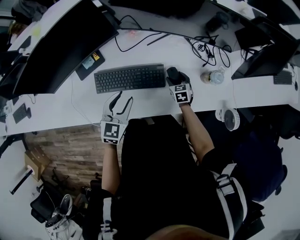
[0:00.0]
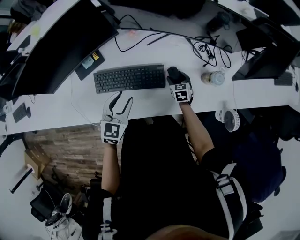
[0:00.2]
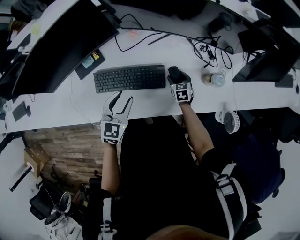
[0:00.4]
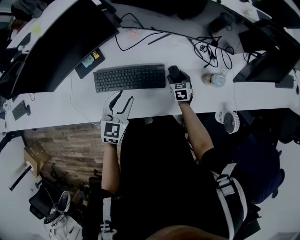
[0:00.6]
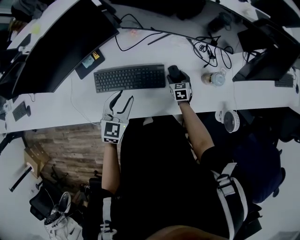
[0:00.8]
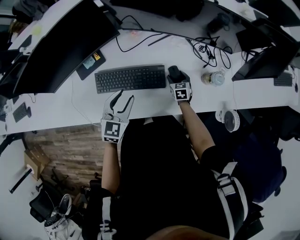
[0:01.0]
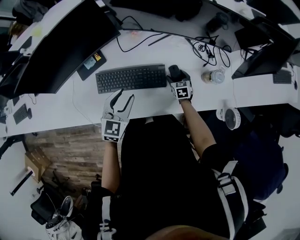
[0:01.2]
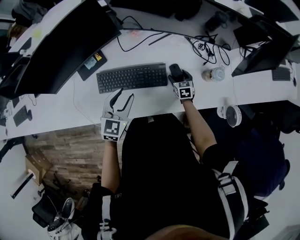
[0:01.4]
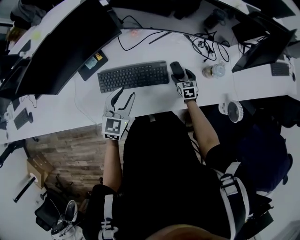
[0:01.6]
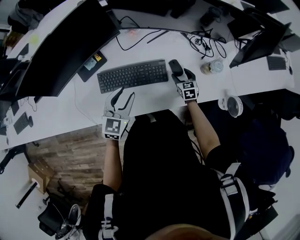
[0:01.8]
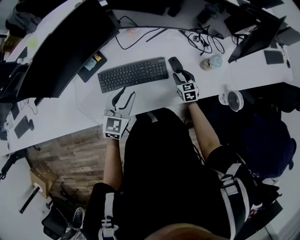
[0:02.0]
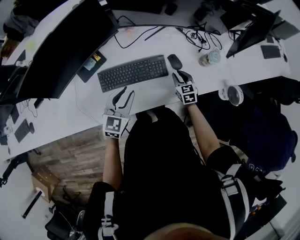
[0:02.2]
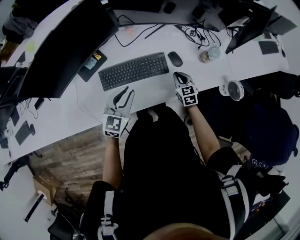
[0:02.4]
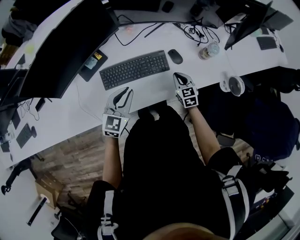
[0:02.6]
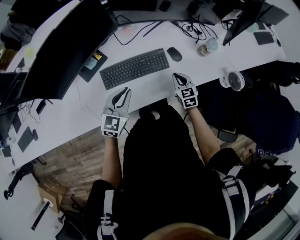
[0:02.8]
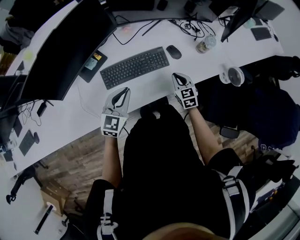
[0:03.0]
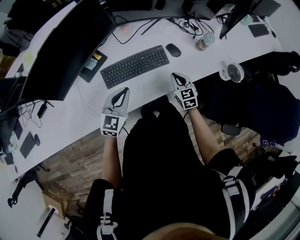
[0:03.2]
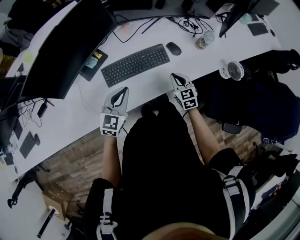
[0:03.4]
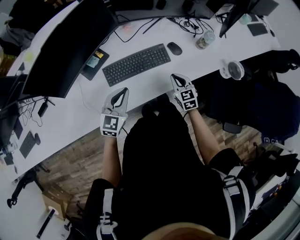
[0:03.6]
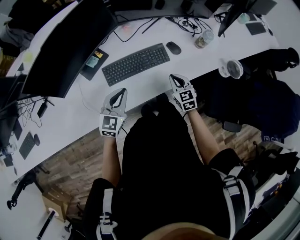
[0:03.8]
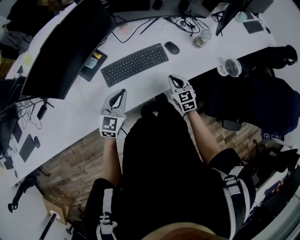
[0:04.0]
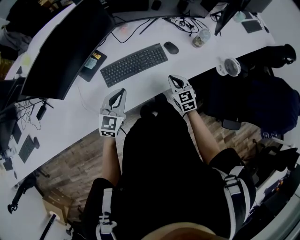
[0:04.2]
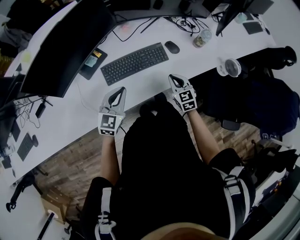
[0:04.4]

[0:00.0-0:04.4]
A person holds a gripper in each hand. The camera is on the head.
0:00.0 to 0:01.4: The grippers move only a little.
0:01.4 to 0:03.0: The left gripper travels backward and to the left by approximately 10 cm, and closes; the right gripper moves backward and upward, approximately 20 cm, and closes up.
0:03.0 to 0:04.4: The right gripper shifts approximately 5 cm backward; the left gripper shifts by about 5 cm.

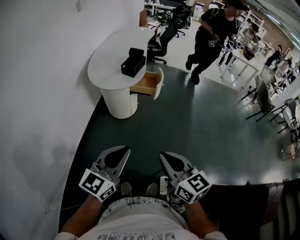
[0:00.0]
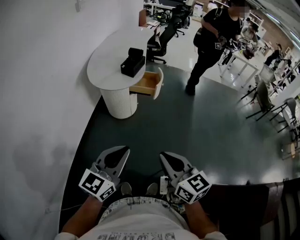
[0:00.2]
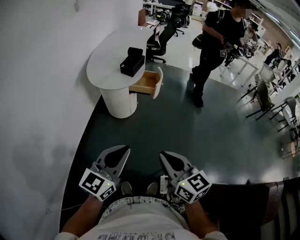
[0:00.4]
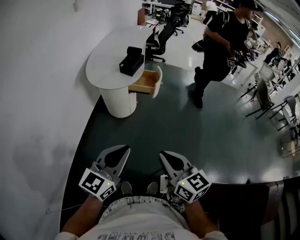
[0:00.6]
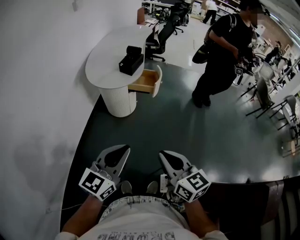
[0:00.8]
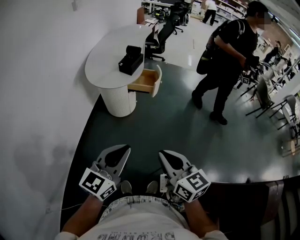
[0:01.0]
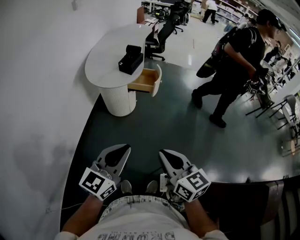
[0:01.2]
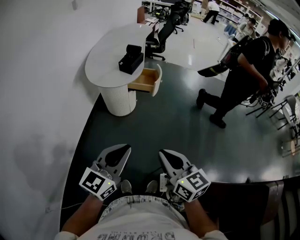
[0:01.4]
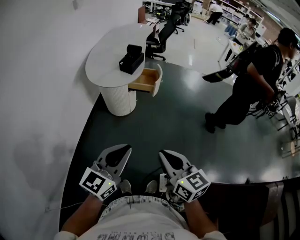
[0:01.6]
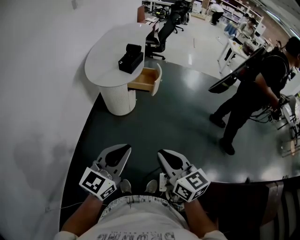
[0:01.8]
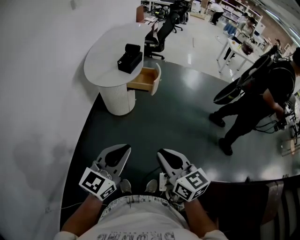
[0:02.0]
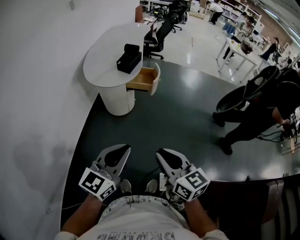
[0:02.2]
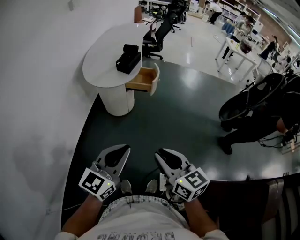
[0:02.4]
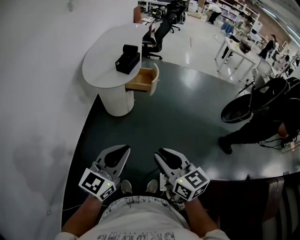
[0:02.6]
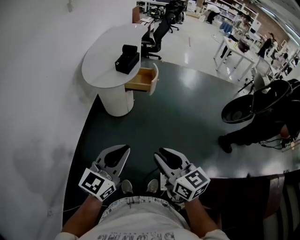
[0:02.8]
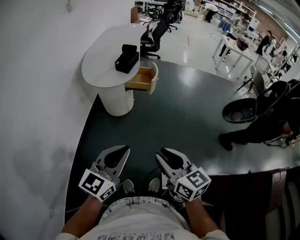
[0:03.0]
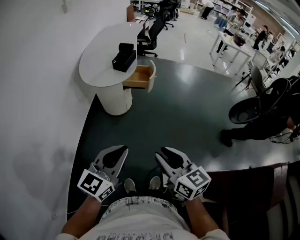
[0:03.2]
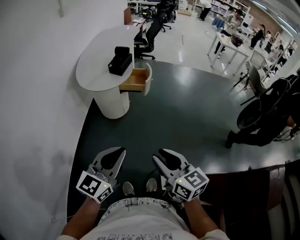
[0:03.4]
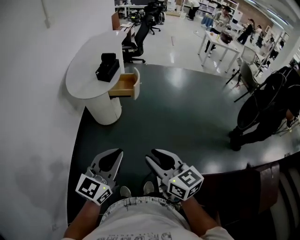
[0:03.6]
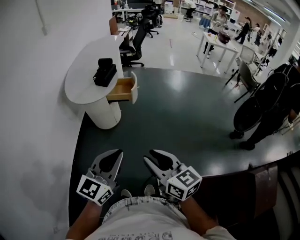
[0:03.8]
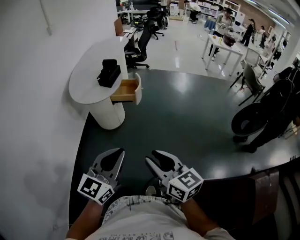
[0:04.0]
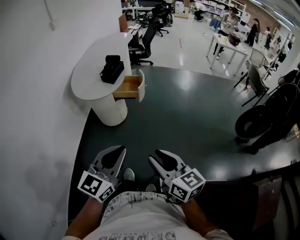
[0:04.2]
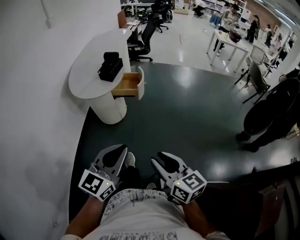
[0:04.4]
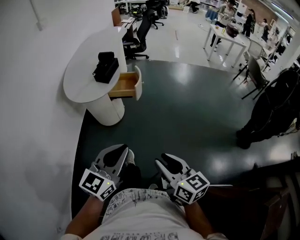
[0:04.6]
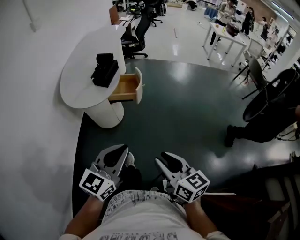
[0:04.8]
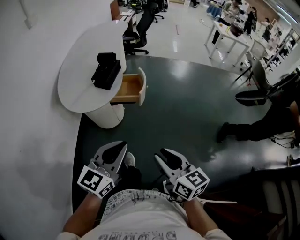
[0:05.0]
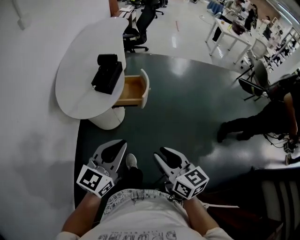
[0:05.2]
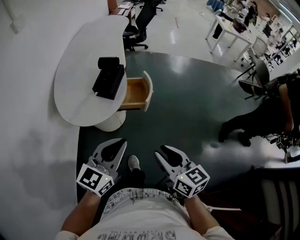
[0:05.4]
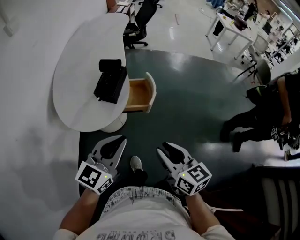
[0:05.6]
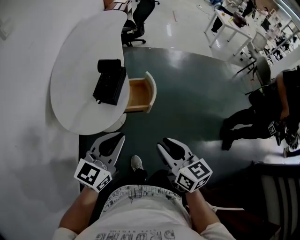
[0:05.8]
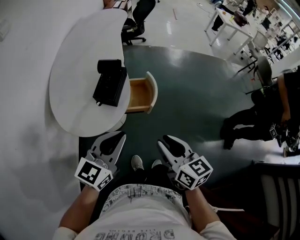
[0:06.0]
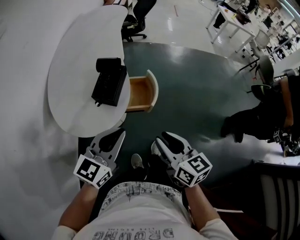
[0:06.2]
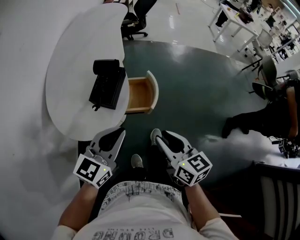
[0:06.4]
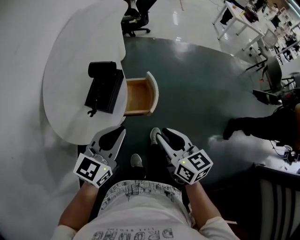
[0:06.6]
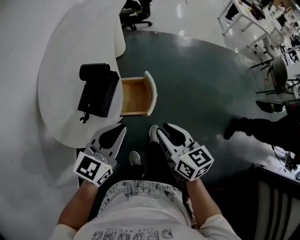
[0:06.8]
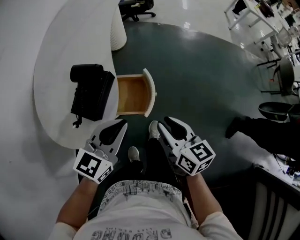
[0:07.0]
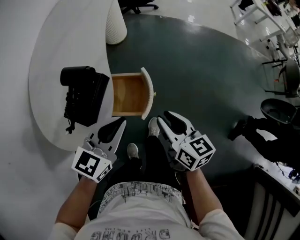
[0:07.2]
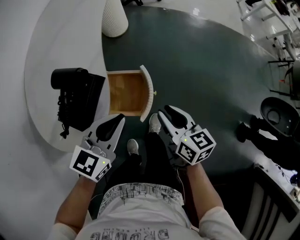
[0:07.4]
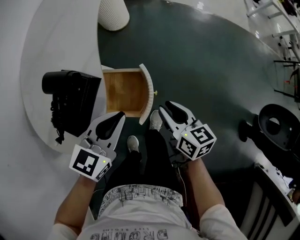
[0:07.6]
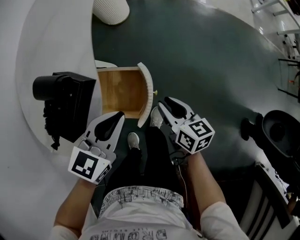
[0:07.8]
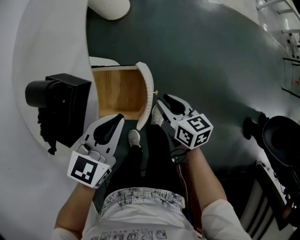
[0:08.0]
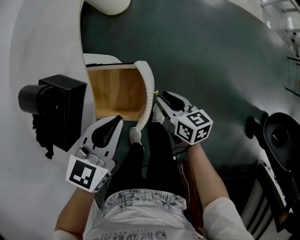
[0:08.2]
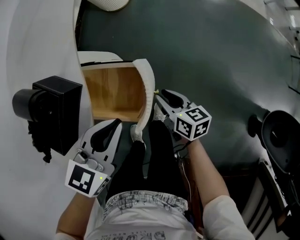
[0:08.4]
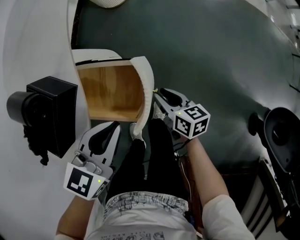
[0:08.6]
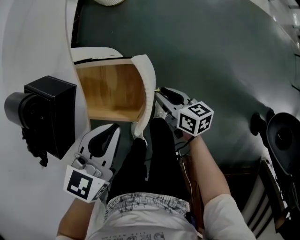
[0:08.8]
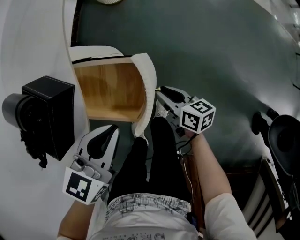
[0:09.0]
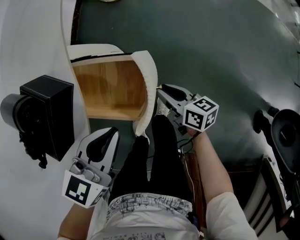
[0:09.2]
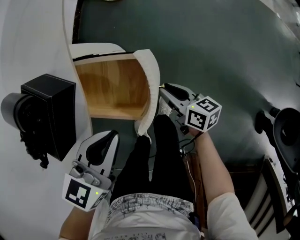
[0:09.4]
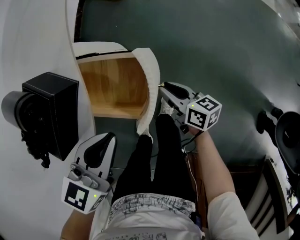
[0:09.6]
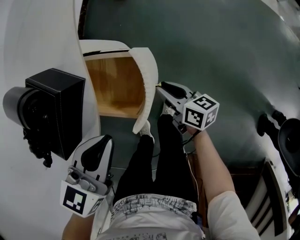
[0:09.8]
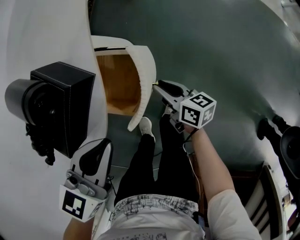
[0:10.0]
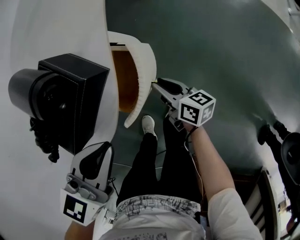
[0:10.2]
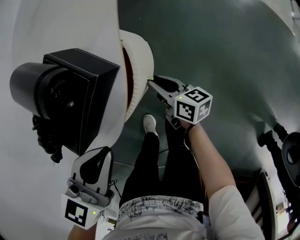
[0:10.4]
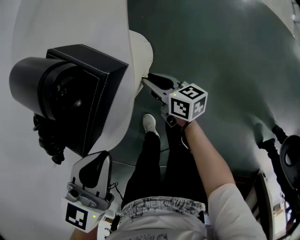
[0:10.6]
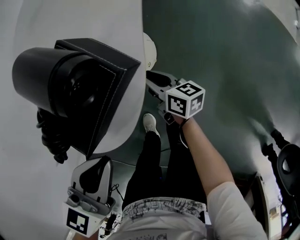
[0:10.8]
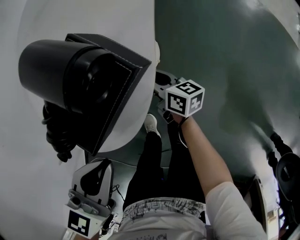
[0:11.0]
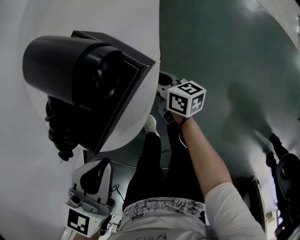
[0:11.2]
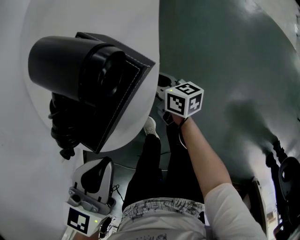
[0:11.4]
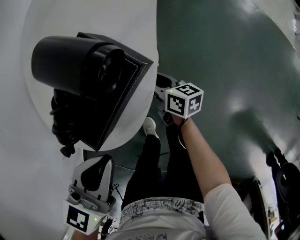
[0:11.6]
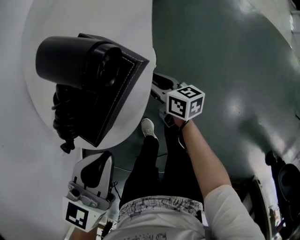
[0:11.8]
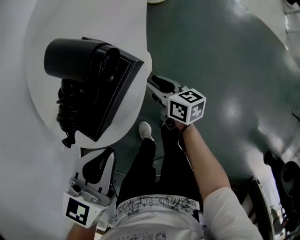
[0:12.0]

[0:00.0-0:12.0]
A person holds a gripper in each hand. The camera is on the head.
0:00.0 to 0:01.6: The grippers move only a little.
0:01.6 to 0:03.0: The right gripper opens up.
0:03.0 to 0:04.4: The right gripper is displaced to the right by roughly 10 cm. The left gripper moves to the right and forward, roughly 10 cm.
0:04.4 to 0:06.0: The pair of grippers is taken forward, about 40 cm.
0:06.0 to 0:07.6: The left gripper moves forward, downward and to the right, approximately 30 cm. Meanwhile the right gripper travels forward and downward by roughly 35 cm.
0:07.6 to 0:09.0: The right gripper shifts some 20 cm downward, and rotates about 20 degrees, while the left gripper moves downward, roughly 10 cm.
0:09.0 to 0:10.4: The right gripper goes approximately 15 cm to the left. The left gripper heads to the left and upward, covering approximately 15 cm.
0:10.4 to 0:12.0: The right gripper moves upward, roughly 5 cm; the left gripper shifts by roughly 5 cm.

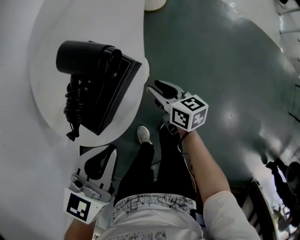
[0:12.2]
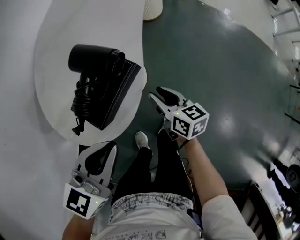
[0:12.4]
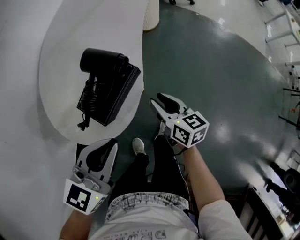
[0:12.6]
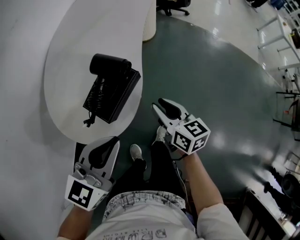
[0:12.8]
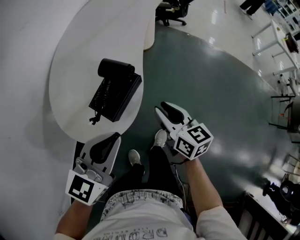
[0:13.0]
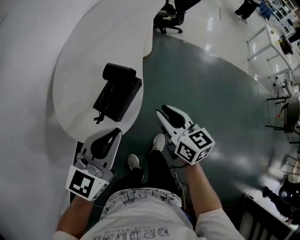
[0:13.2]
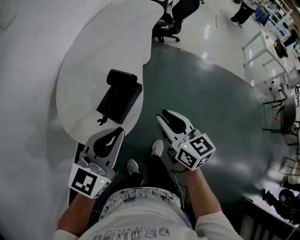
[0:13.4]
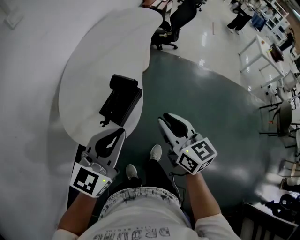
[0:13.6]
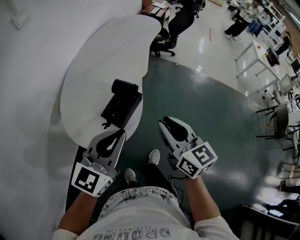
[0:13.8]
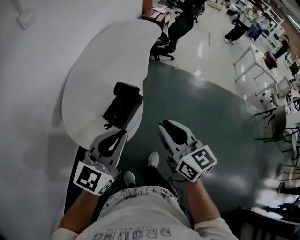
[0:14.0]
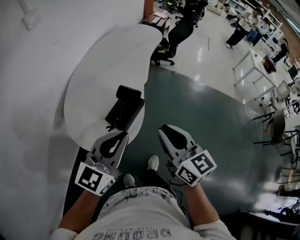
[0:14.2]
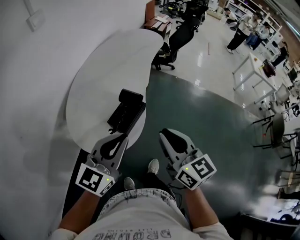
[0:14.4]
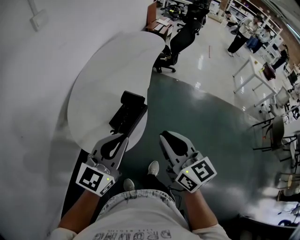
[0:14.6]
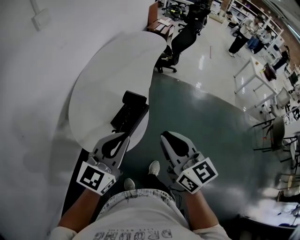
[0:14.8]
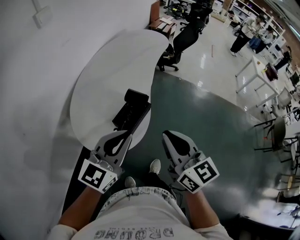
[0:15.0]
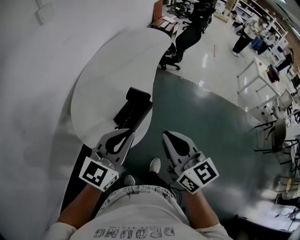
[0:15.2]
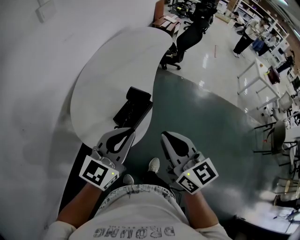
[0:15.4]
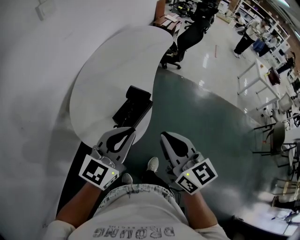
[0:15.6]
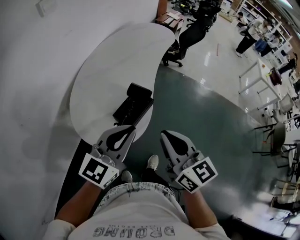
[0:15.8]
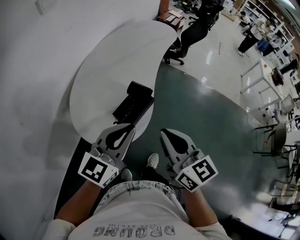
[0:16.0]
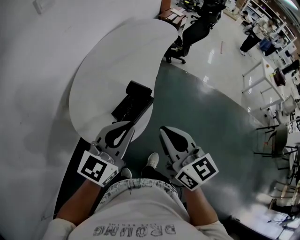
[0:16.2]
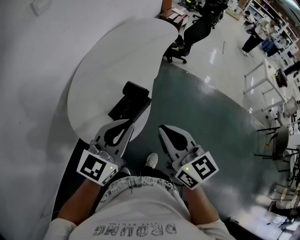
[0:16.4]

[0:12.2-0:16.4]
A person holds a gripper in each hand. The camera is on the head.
0:12.2 to 0:13.6: The left gripper goes some 20 cm upward, and swivels approximately 30 degrees, while the right gripper goes some 35 cm upward, and rotates some 30 degrees.
0:13.6 to 0:15.0: The right gripper shifts about 10 cm upward and backward.
0:15.0 to 0:16.4: The grippers move only a little.

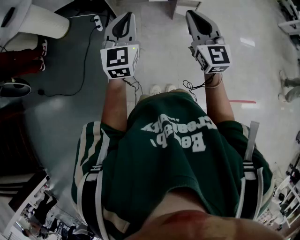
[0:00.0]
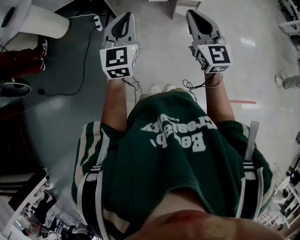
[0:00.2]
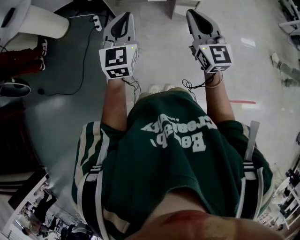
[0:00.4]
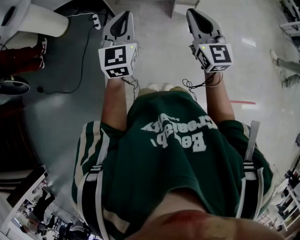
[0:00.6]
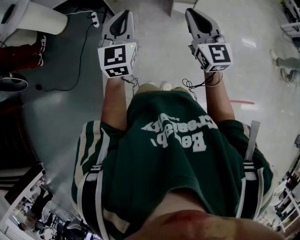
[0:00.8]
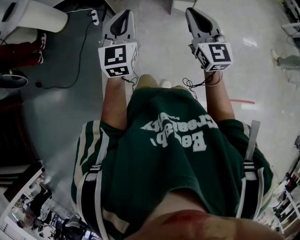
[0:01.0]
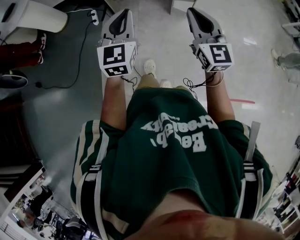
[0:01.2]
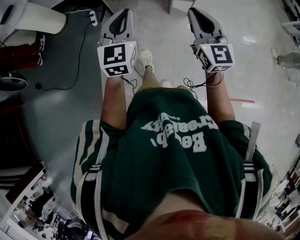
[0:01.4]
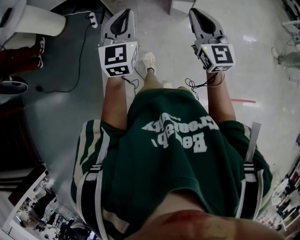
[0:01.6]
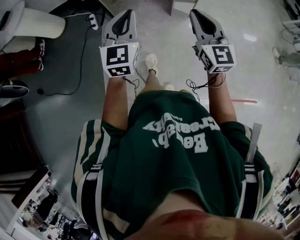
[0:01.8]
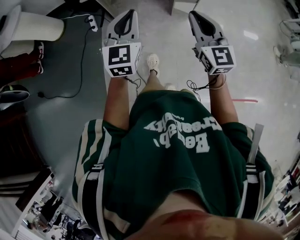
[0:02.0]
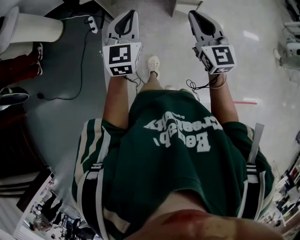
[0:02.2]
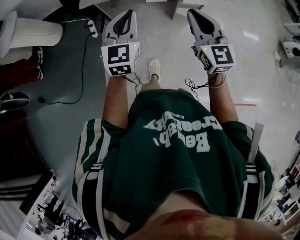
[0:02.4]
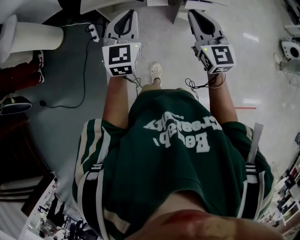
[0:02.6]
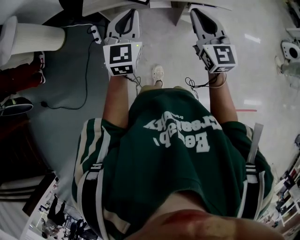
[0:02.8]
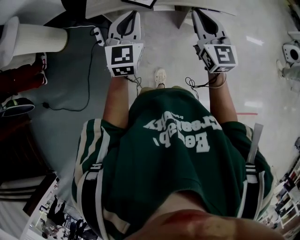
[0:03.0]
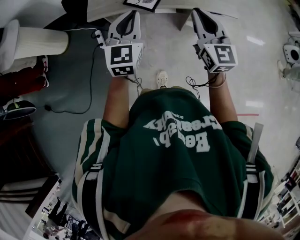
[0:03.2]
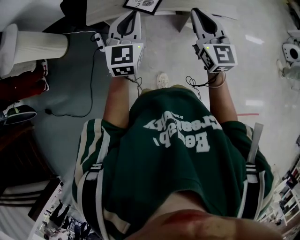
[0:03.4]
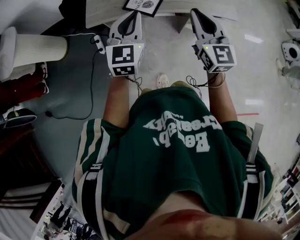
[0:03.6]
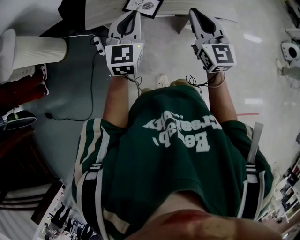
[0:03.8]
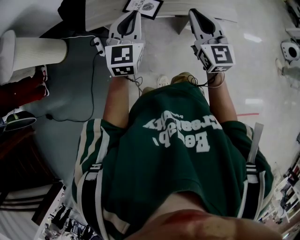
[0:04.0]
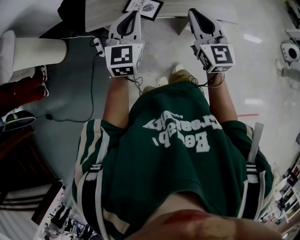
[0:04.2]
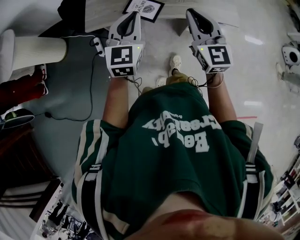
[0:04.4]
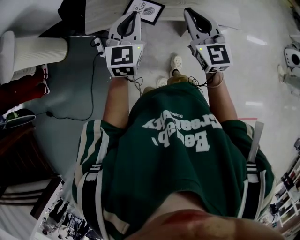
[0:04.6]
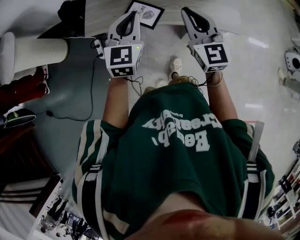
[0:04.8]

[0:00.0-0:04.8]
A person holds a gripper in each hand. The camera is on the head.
0:00.0 to 0:01.6: The two grippers go about 5 cm to the right.
0:01.6 to 0:03.2: The two grippers go approximately 35 cm forward.
0:03.2 to 0:04.8: The grippers both shift forward by roughly 15 cm.
